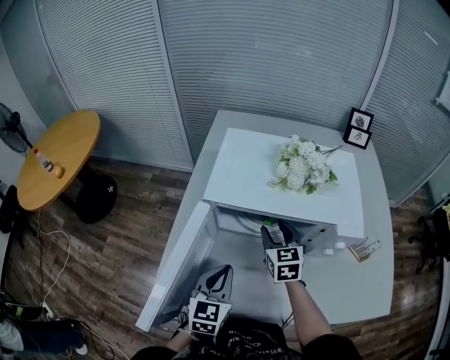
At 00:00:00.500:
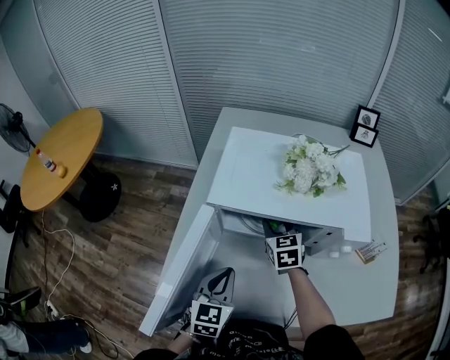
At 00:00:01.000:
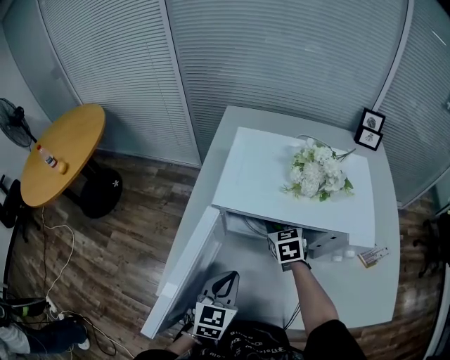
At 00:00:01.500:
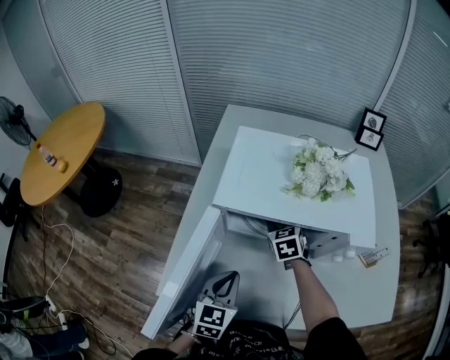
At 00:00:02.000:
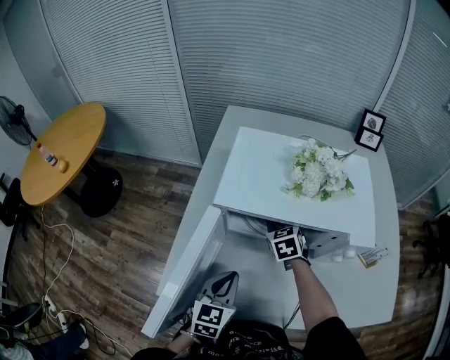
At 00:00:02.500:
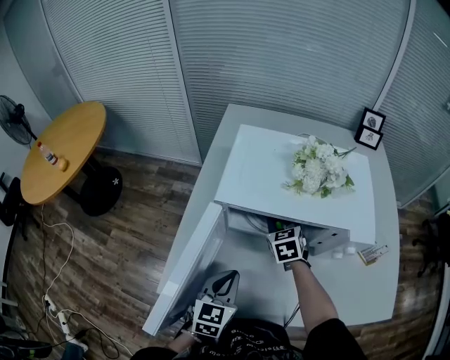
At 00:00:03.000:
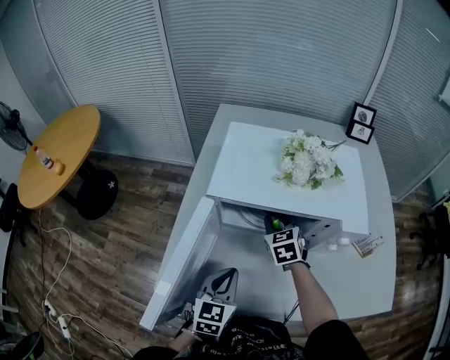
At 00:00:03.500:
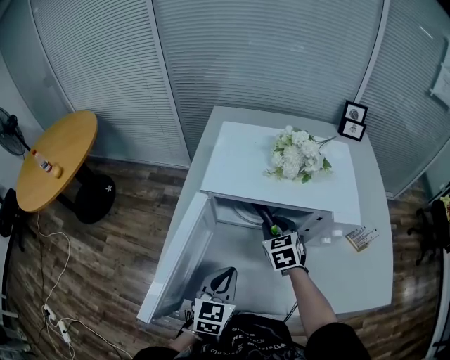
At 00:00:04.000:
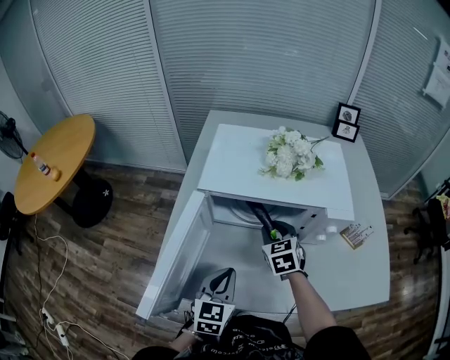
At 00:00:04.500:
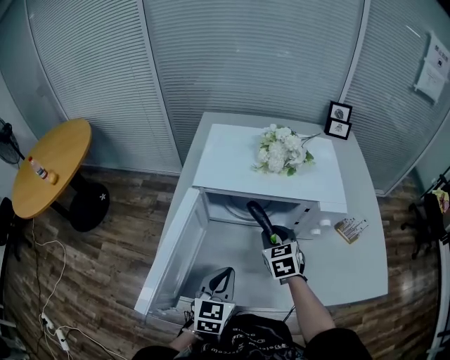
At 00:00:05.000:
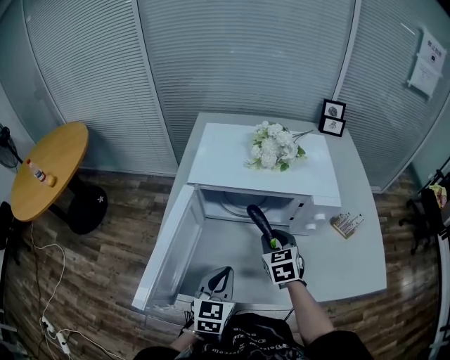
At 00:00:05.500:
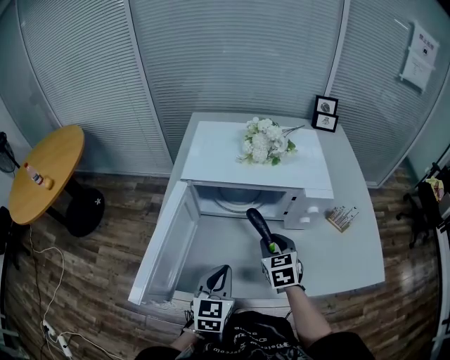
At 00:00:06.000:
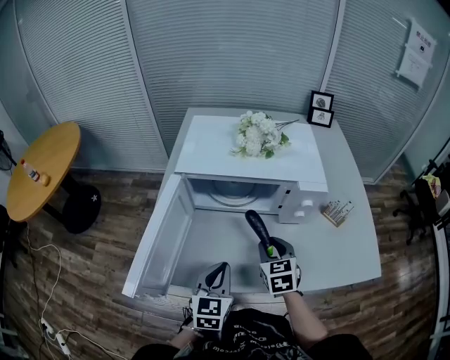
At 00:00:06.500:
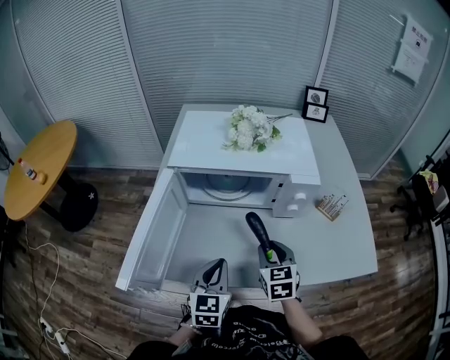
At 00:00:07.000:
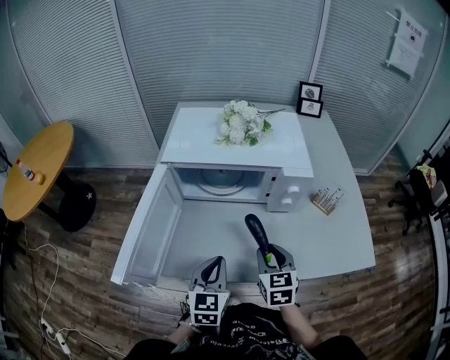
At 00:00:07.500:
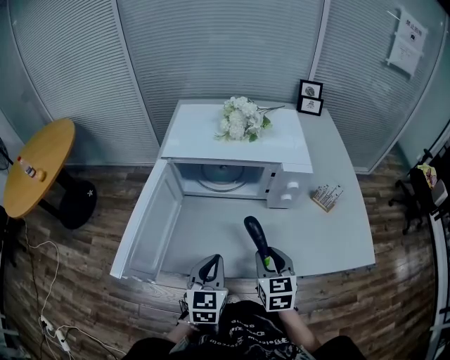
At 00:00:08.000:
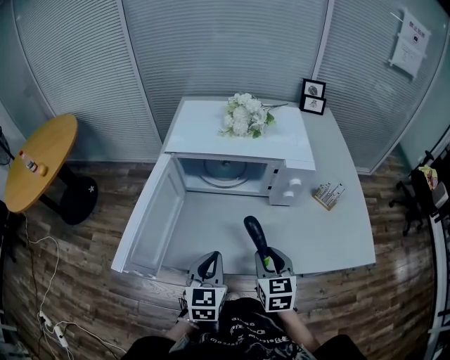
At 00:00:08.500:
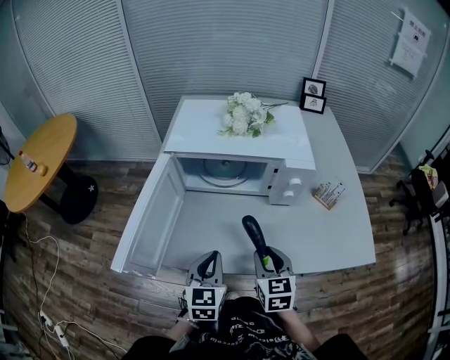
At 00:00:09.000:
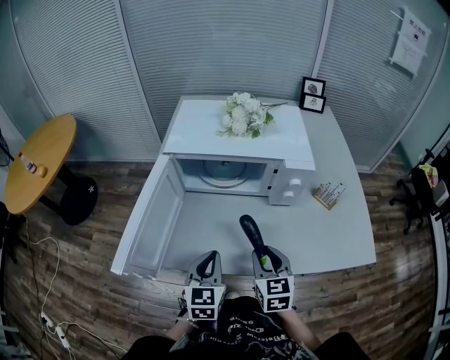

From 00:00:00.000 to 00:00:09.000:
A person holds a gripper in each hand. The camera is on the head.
From 00:00:00.000 to 00:00:02.000: The right gripper shifts about 10 cm forward and downward.
From 00:00:02.000 to 00:00:04.500: The right gripper is displaced backward and to the right by roughly 15 cm. Meanwhile the left gripper shifts by about 5 cm.
From 00:00:04.500 to 00:00:07.000: The right gripper travels backward and to the right by approximately 20 cm. The left gripper goes approximately 5 cm to the right and backward.
From 00:00:07.000 to 00:00:09.000: The grippers make only small movements.

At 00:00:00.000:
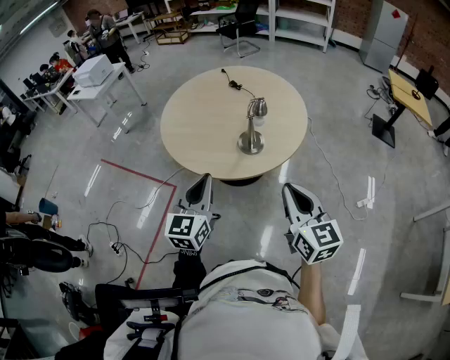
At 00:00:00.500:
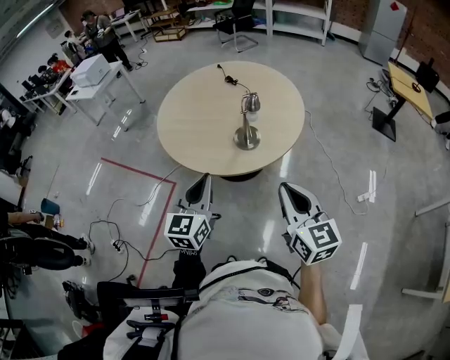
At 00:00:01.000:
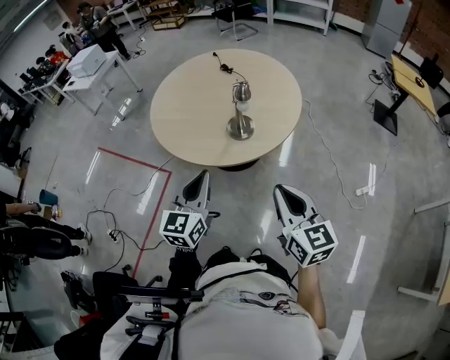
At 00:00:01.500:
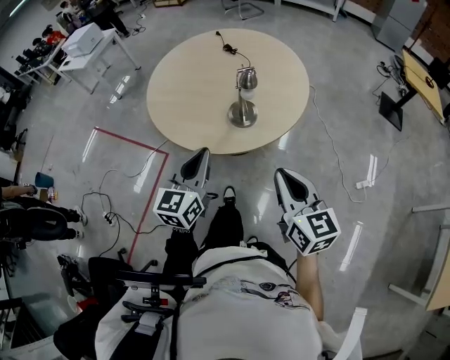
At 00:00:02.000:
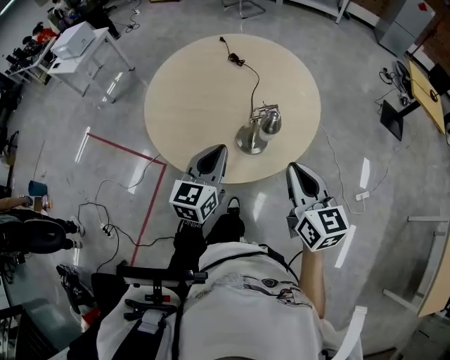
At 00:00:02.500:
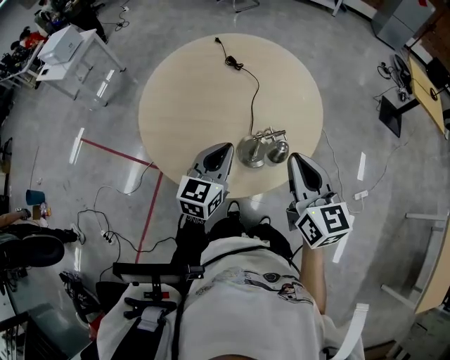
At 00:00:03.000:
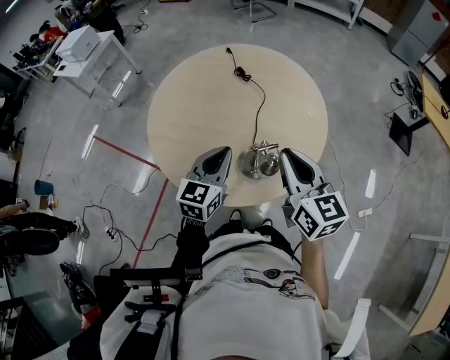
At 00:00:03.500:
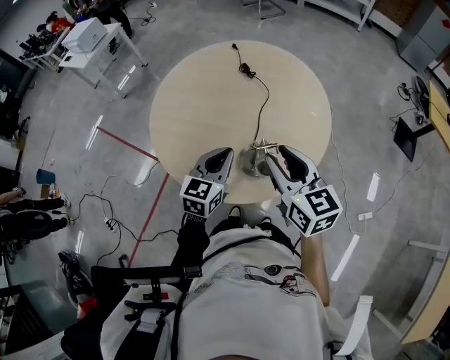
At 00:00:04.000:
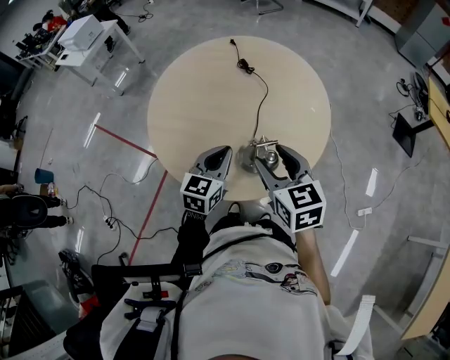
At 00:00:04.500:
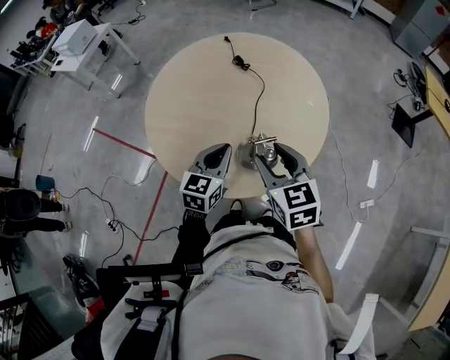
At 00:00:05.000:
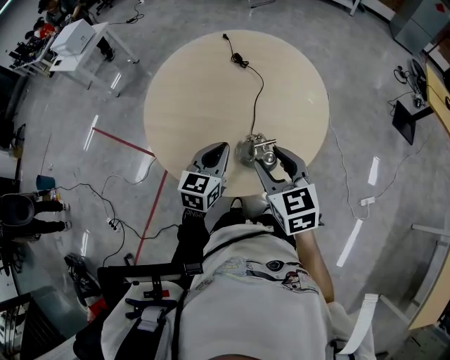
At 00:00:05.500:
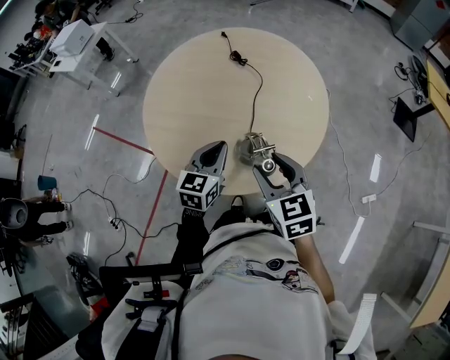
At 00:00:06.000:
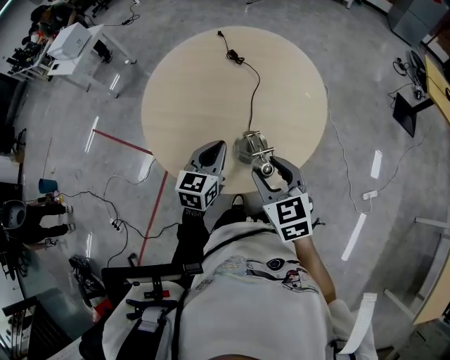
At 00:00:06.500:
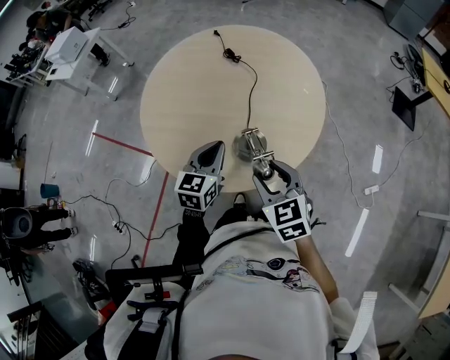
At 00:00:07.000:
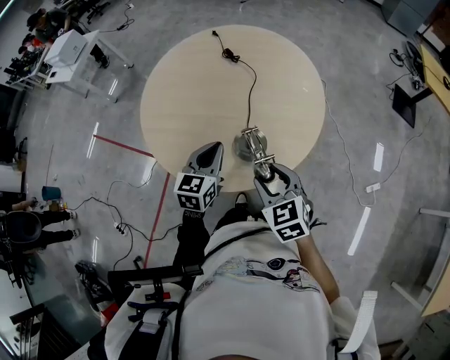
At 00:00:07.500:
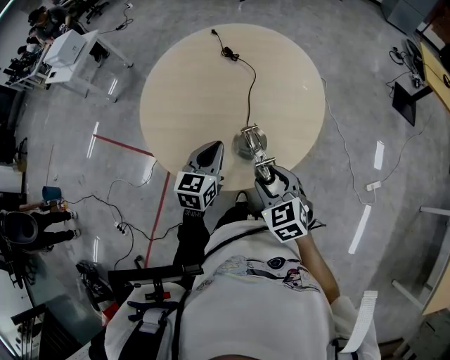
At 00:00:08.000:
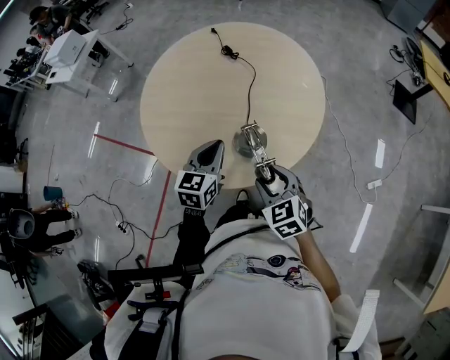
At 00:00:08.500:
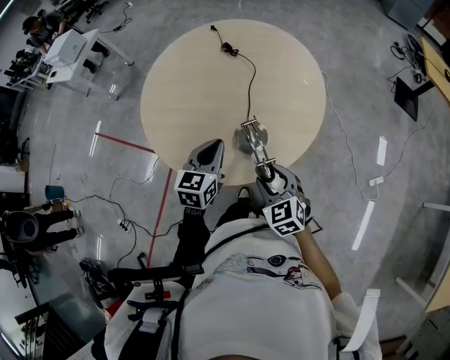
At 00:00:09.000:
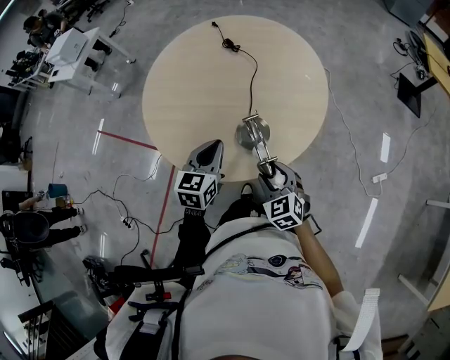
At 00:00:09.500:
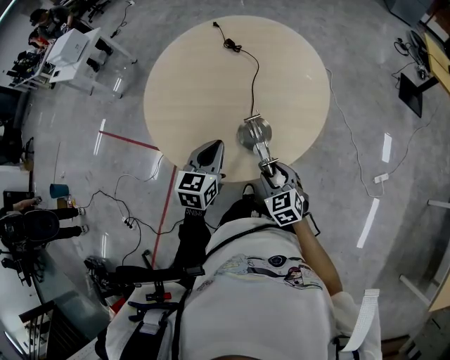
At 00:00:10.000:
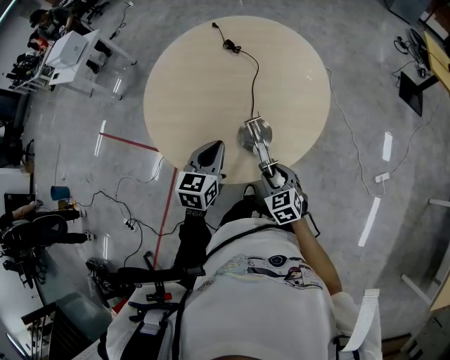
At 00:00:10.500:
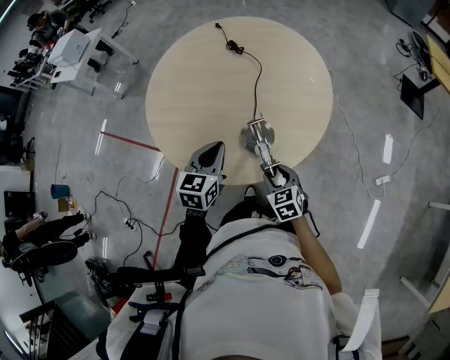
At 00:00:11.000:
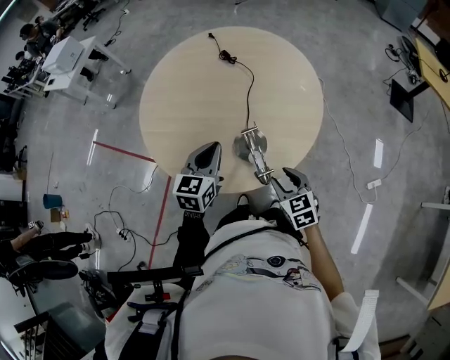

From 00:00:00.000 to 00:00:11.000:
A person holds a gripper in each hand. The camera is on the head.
From 00:00:00.000 to 00:00:02.000: The grippers both shift forward by some 20 cm.
From 00:00:02.000 to 00:00:03.500: The two grippers go about 10 cm forward. The right gripper opens its fingers.
From 00:00:03.500 to 00:00:05.500: The right gripper goes roughly 5 cm downward, and opens.
From 00:00:05.500 to 00:00:07.500: The right gripper moves downward, approximately 10 cm.
From 00:00:07.500 to 00:00:09.000: The right gripper is displaced downward by about 5 cm.

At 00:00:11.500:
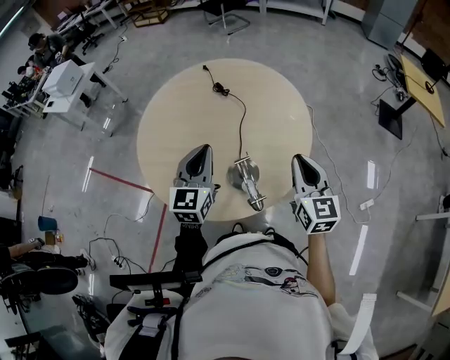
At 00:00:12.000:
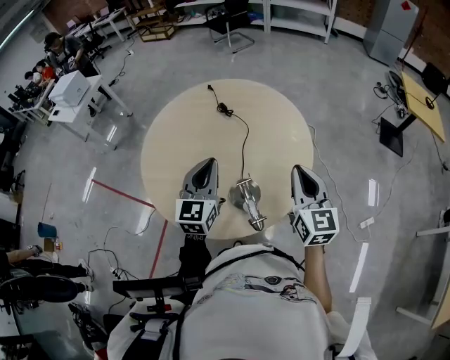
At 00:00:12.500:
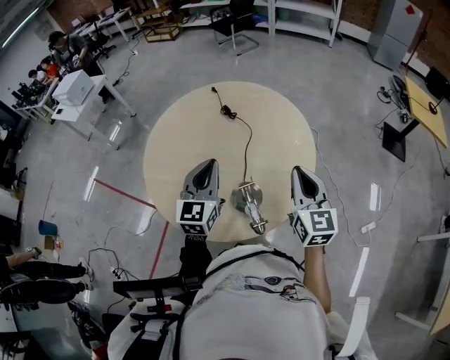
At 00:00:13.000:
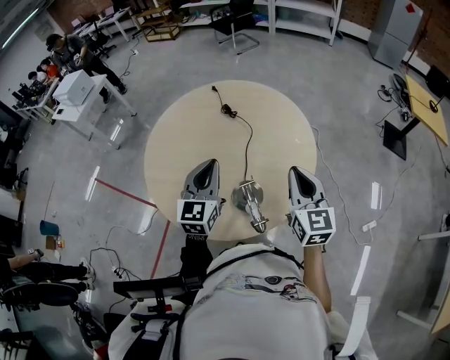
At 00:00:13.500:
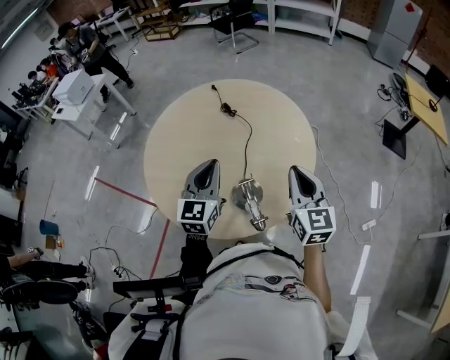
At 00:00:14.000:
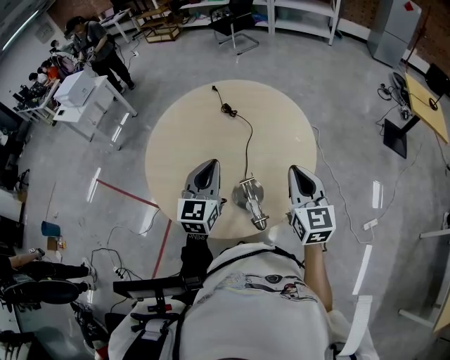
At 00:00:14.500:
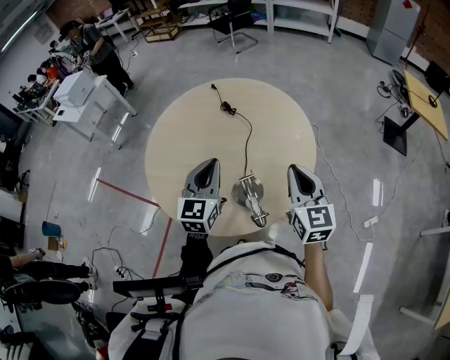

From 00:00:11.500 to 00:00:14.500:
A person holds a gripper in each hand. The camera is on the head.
From 00:00:11.500 to 00:00:13.000: The grippers move only a little.
From 00:00:13.000 to 00:00:14.500: Both grippers stay about where they are.
